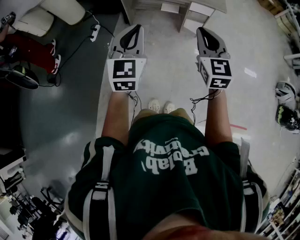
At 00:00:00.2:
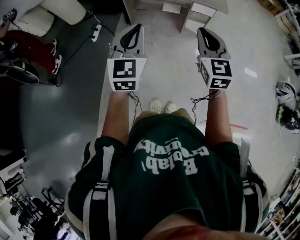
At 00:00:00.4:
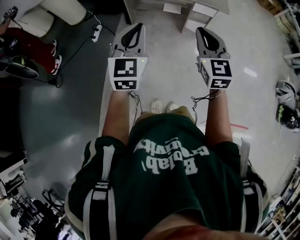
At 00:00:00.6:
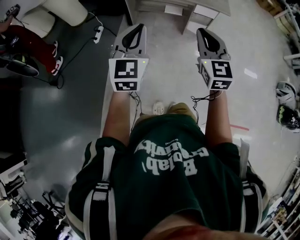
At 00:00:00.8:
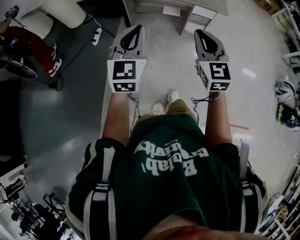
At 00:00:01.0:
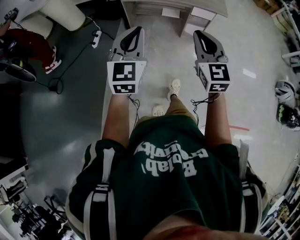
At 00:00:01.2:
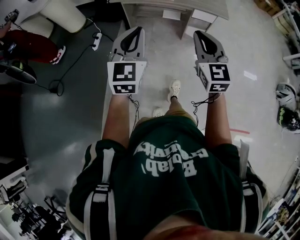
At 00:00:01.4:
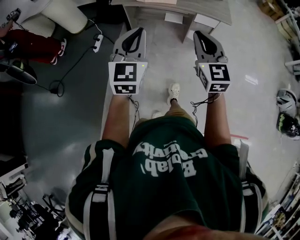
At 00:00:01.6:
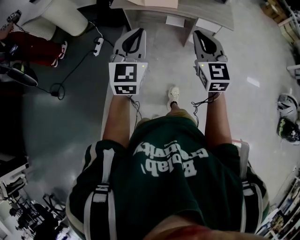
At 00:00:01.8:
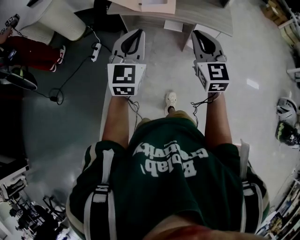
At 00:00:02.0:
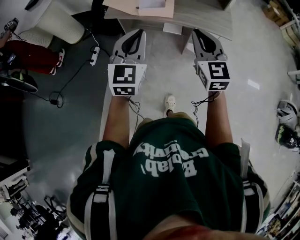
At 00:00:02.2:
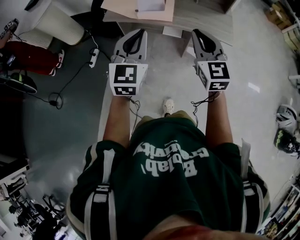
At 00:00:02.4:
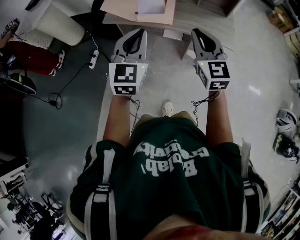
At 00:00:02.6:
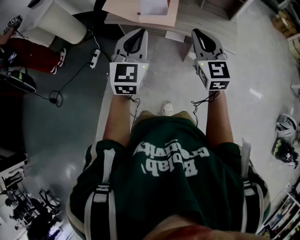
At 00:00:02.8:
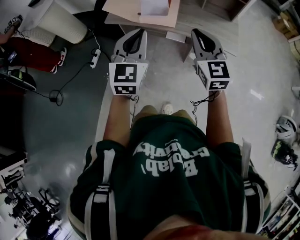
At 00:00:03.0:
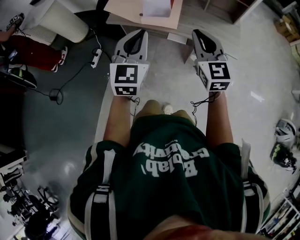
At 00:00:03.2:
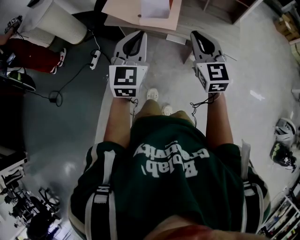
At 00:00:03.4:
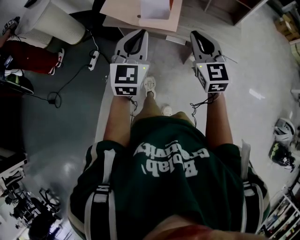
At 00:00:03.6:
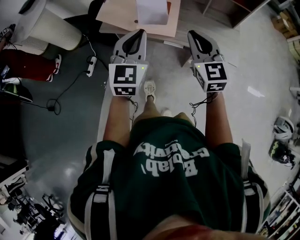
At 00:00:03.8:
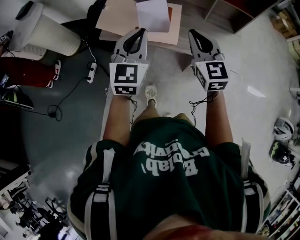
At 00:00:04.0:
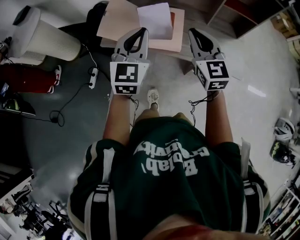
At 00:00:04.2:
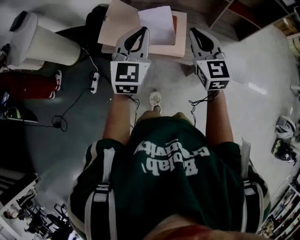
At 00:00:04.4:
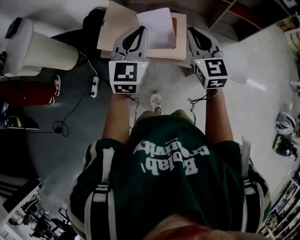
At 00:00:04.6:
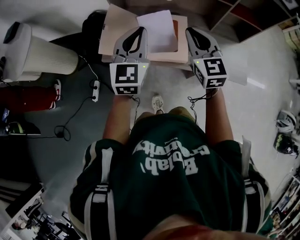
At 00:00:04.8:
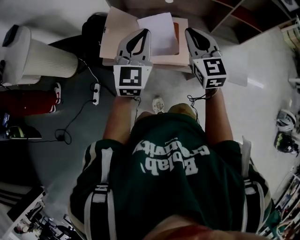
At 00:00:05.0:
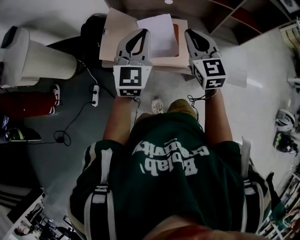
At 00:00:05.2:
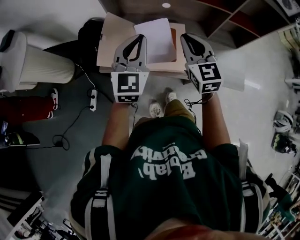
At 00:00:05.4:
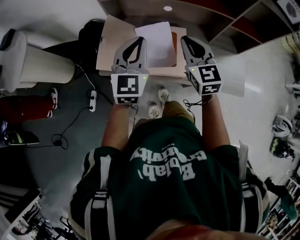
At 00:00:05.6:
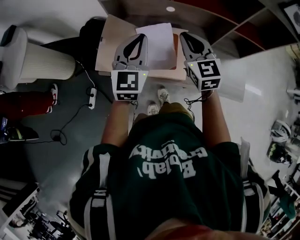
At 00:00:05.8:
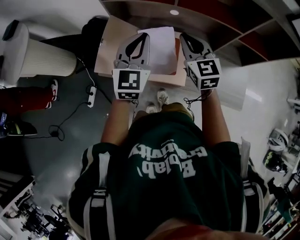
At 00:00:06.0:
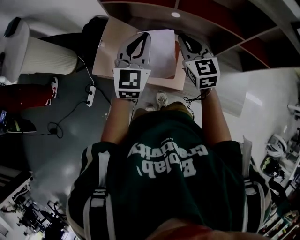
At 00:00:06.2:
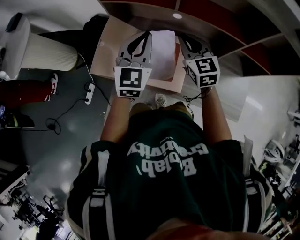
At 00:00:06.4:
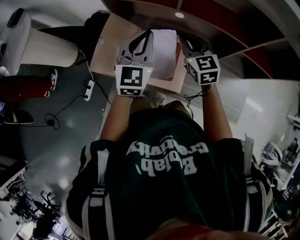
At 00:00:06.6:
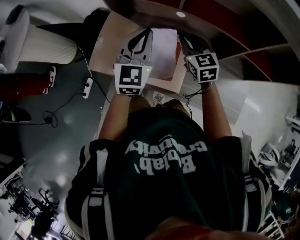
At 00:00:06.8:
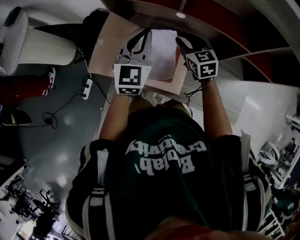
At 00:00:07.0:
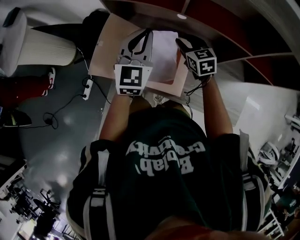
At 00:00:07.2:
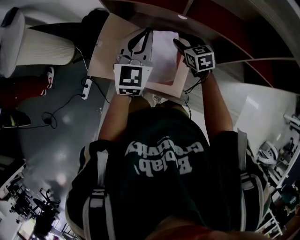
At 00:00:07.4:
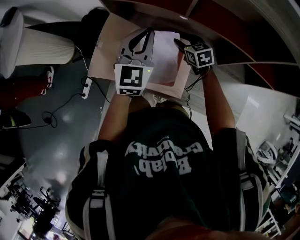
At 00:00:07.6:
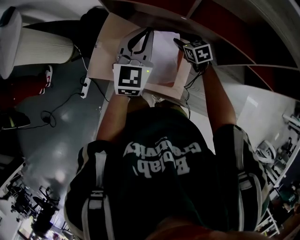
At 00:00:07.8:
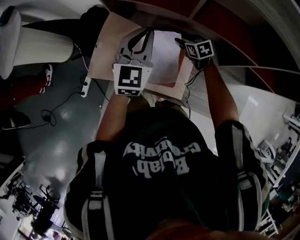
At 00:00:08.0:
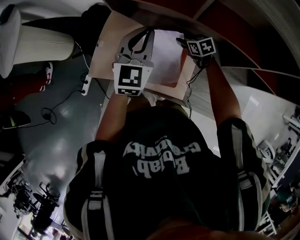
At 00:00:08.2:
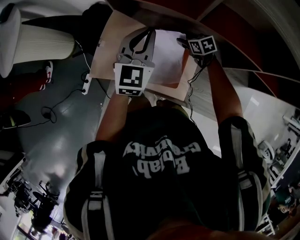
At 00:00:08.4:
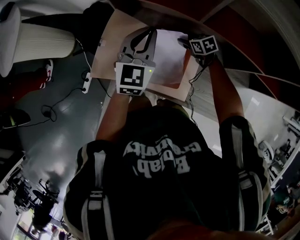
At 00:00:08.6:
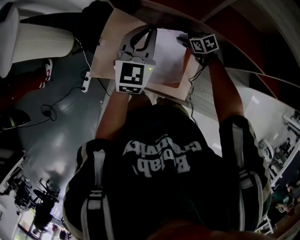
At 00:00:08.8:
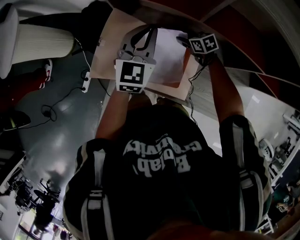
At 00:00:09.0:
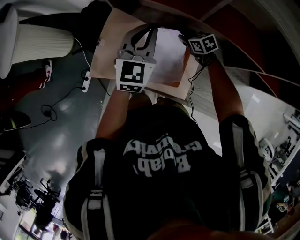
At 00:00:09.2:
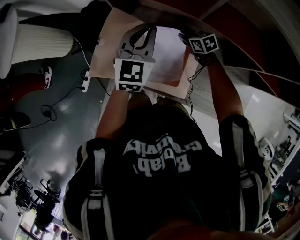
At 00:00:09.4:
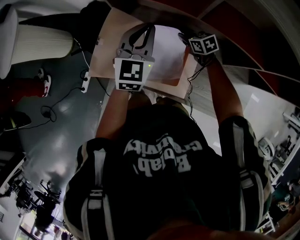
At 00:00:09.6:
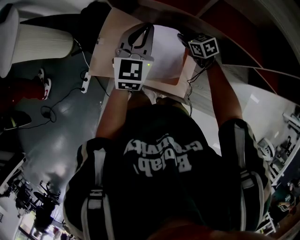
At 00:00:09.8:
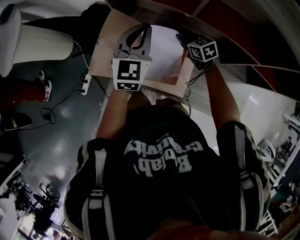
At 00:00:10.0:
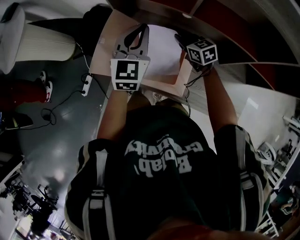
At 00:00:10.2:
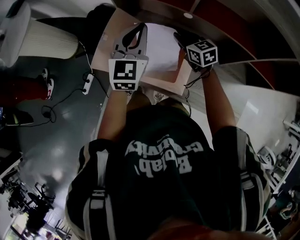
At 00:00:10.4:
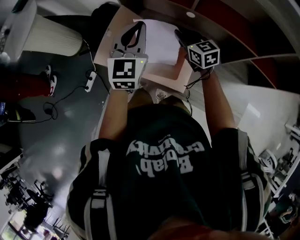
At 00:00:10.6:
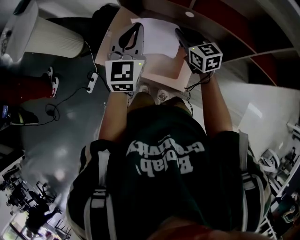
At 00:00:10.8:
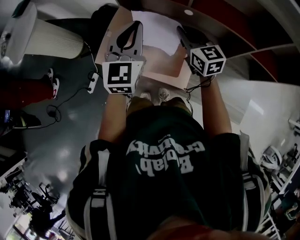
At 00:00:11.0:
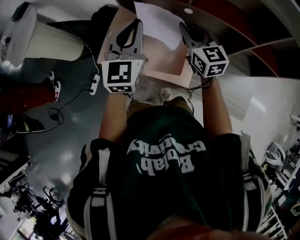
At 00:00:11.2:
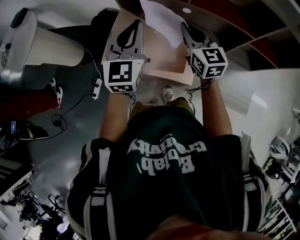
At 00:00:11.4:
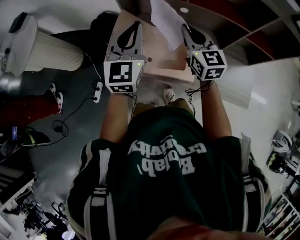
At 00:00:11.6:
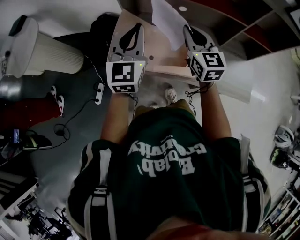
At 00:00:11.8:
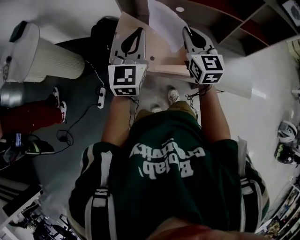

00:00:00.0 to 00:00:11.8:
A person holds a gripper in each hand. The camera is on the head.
00:00:00.0 to 00:00:01.4: Both grippers move forward, about 10 cm.
00:00:01.4 to 00:00:03.0: The right gripper moves forward, approximately 30 cm, while the left gripper heads forward and to the right, covering some 30 cm.
00:00:03.0 to 00:00:04.4: Both grippers travel together forward, about 35 cm.
00:00:04.4 to 00:00:06.0: Both grippers travel together forward, approximately 20 cm.
00:00:06.0 to 00:00:07.4: The right gripper shifts approximately 20 cm downward and forward, swivels roughly 30 degrees, and opens its fingers. Meanwhile the left gripper goes roughly 10 cm forward.
00:00:07.4 to 00:00:08.8: The left gripper changes place by some 5 cm, while the right gripper moves downward, about 10 cm, and rotates about 20 degrees.
00:00:08.8 to 00:00:10.4: The right gripper goes about 20 cm upward and backward, rotates about 30 degrees, and closes its fingers, while the left gripper shifts some 10 cm backward and upward.
00:00:10.4 to 00:00:11.8: The right gripper is displaced backward and upward by approximately 25 cm, and swivels approximately 40 degrees, while the left gripper heads backward, to the left and upward, covering roughly 15 cm.

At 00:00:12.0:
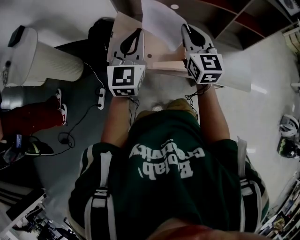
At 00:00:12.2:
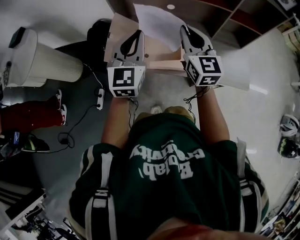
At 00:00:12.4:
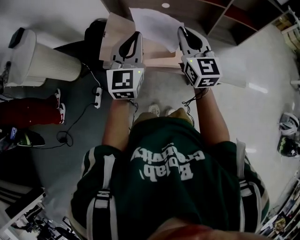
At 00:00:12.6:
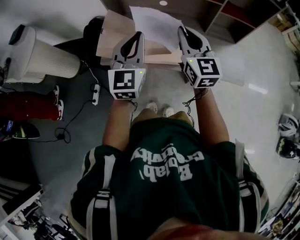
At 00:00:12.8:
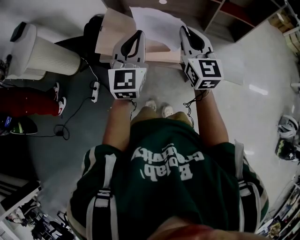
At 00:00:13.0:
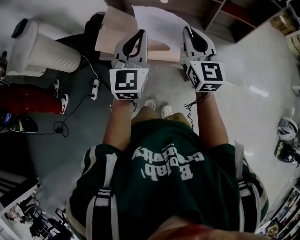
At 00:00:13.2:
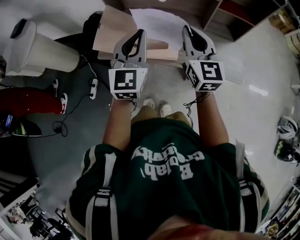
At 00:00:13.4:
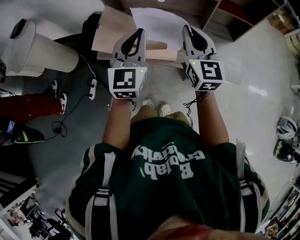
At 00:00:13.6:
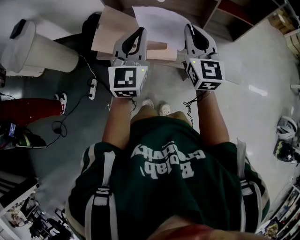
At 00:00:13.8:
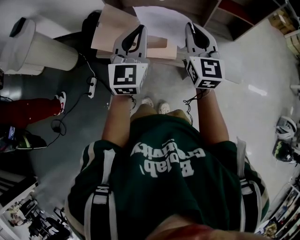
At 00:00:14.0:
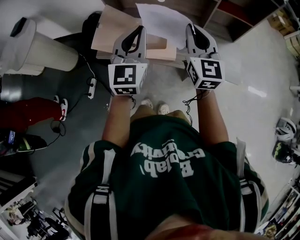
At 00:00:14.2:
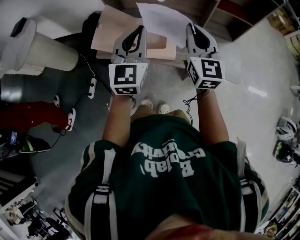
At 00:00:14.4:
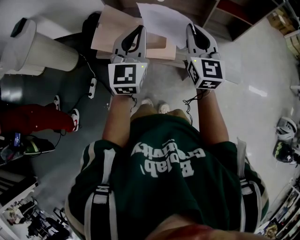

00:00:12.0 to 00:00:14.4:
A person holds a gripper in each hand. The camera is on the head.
00:00:12.0 to 00:00:13.2: The grippers both shift to the right and backward by some 15 cm.
00:00:13.2 to 00:00:14.4: The grippers make only small movements.

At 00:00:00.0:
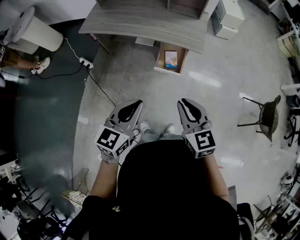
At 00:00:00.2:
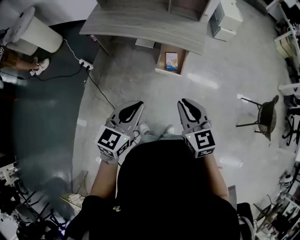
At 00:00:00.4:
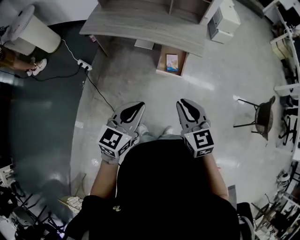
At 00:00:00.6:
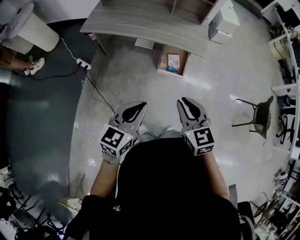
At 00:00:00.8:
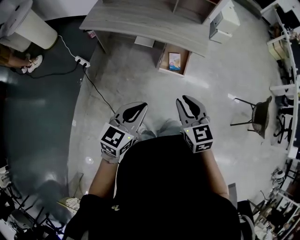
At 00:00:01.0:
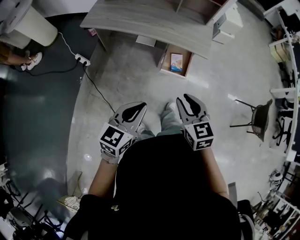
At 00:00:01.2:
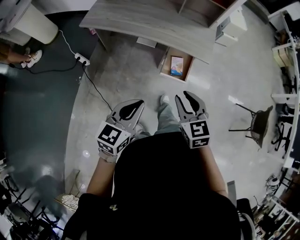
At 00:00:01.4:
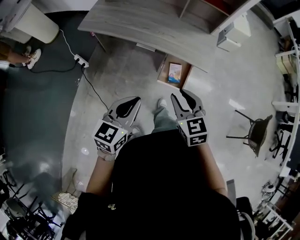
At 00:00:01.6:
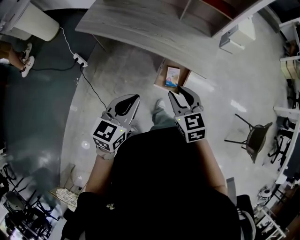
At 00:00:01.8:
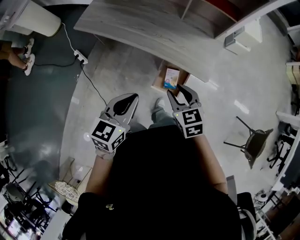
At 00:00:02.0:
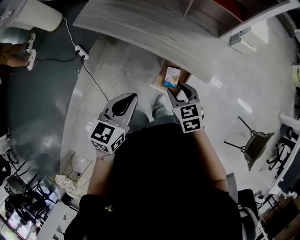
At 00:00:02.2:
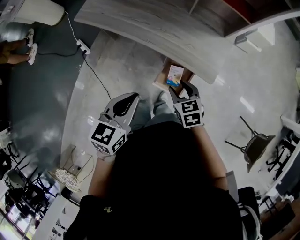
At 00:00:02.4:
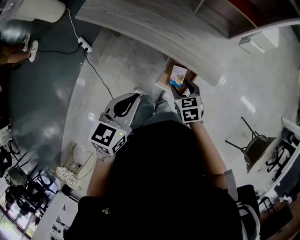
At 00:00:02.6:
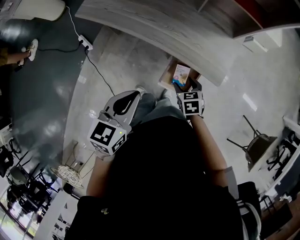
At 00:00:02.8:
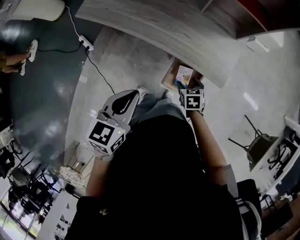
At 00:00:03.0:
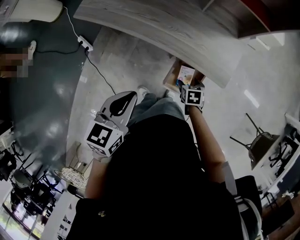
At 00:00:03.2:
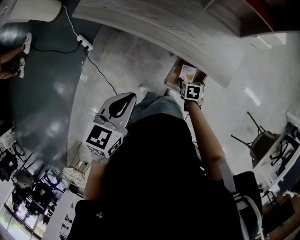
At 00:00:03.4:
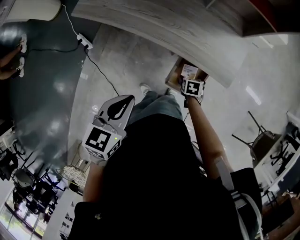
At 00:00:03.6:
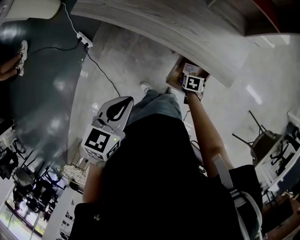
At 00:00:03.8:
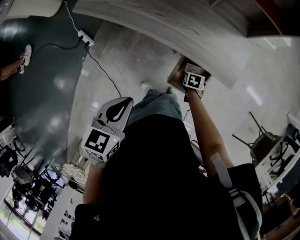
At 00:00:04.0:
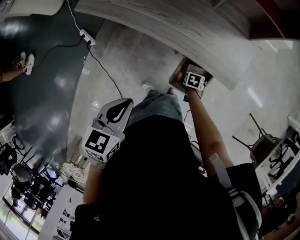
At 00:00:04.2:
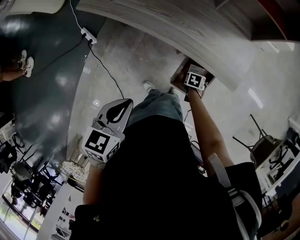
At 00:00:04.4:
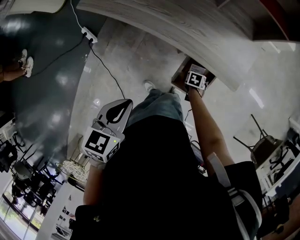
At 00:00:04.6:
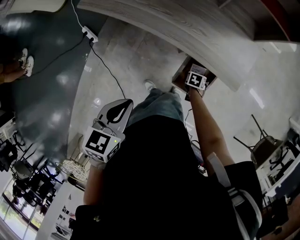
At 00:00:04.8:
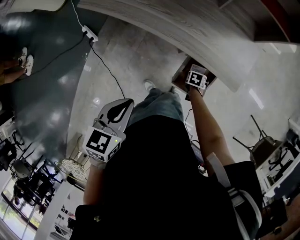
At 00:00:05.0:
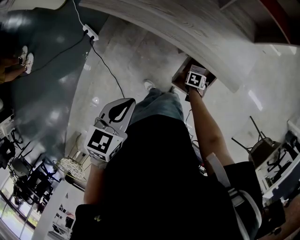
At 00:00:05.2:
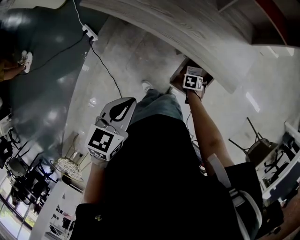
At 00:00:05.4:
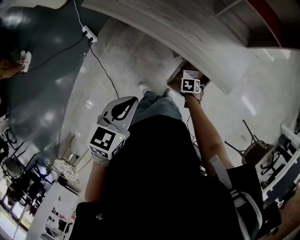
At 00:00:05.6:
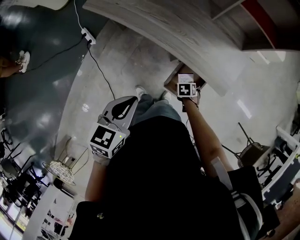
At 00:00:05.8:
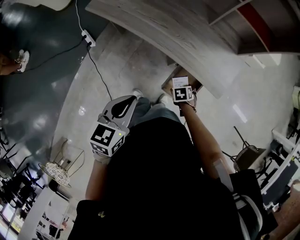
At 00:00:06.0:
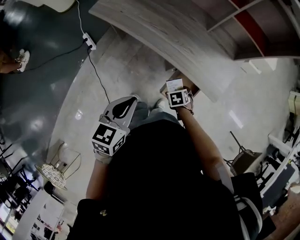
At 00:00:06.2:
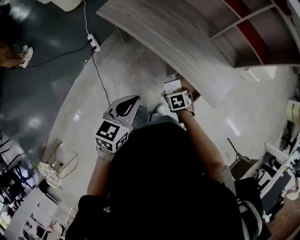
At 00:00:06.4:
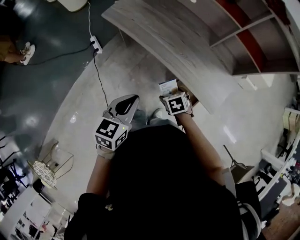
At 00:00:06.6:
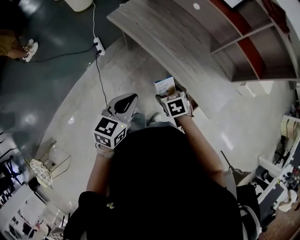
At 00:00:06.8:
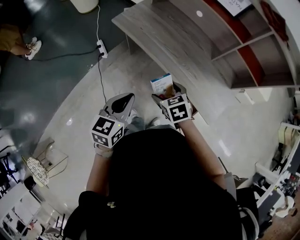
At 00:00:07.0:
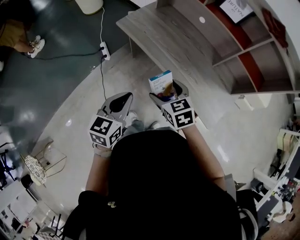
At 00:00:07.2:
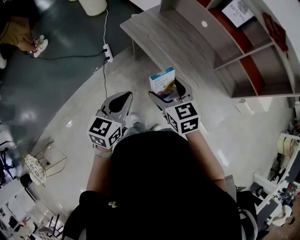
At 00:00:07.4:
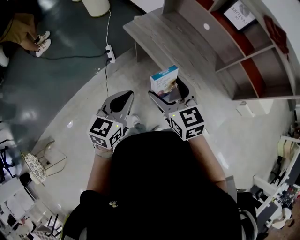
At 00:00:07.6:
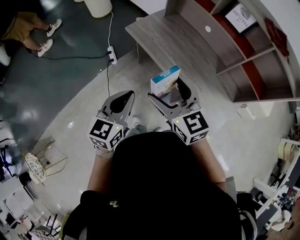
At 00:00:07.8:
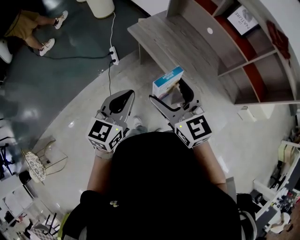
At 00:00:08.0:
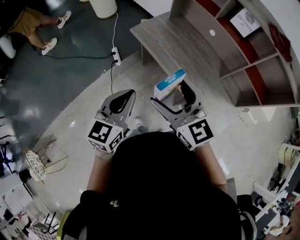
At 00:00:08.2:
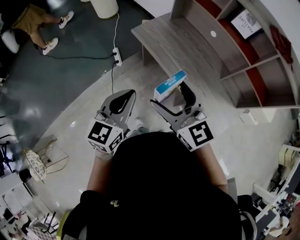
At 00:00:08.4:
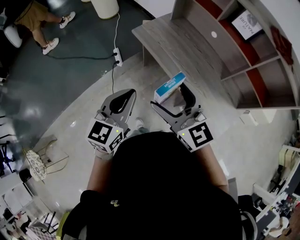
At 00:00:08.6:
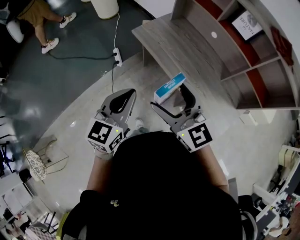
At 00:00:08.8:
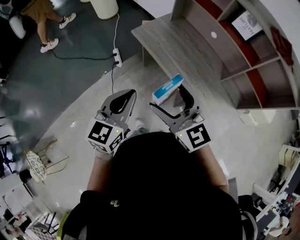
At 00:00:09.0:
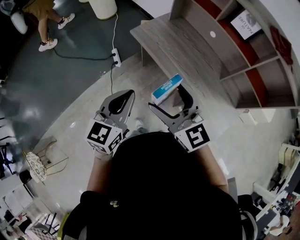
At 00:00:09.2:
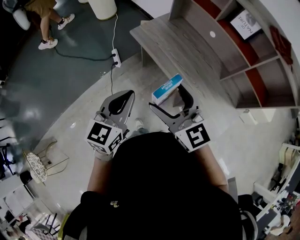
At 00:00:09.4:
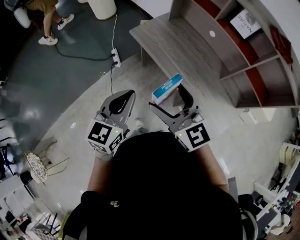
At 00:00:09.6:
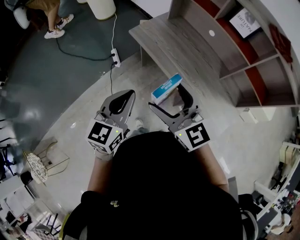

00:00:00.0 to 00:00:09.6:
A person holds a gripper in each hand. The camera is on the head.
00:00:00.0 to 00:00:01.6: Both grippers travel together forward, about 20 cm.
00:00:01.6 to 00:00:03.2: The left gripper goes approximately 10 cm forward and downward, while the right gripper goes about 35 cm downward, tilts its fingers some 40 degrees downward, and opens its fingers.
00:00:03.2 to 00:00:04.8: The right gripper goes roughly 10 cm downward. The left gripper moves roughly 5 cm.
00:00:04.8 to 00:00:06.4: The right gripper moves upward, roughly 25 cm, and rolls counterclockwise, seen from behind, by about 40 degrees. The left gripper heads upward, covering approximately 5 cm.
00:00:06.4 to 00:00:08.0: The left gripper heads upward and to the left, covering approximately 15 cm, and turns by roughly 20 degrees; the right gripper moves upward, approximately 35 cm, and tilts its fingers approximately 60 degrees upward.
00:00:08.0 to 00:00:09.6: The grippers make only small movements.
